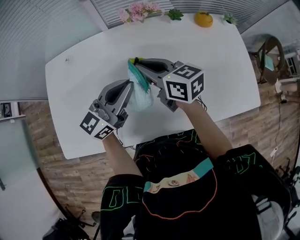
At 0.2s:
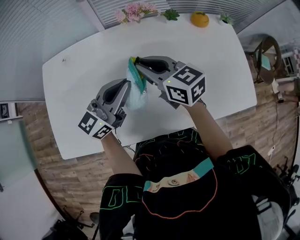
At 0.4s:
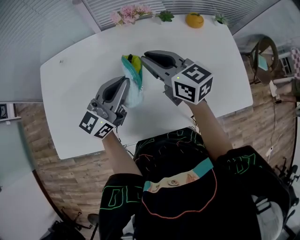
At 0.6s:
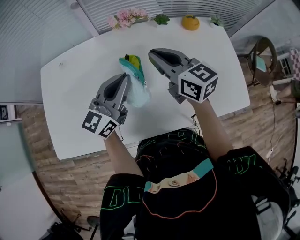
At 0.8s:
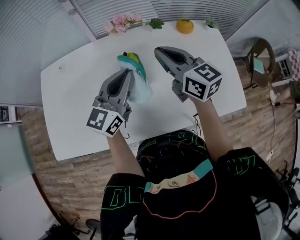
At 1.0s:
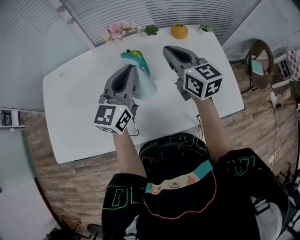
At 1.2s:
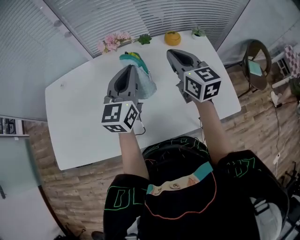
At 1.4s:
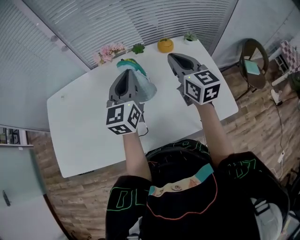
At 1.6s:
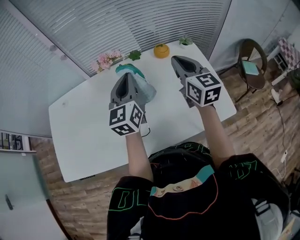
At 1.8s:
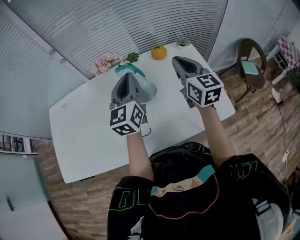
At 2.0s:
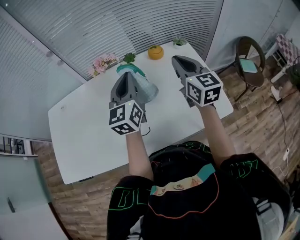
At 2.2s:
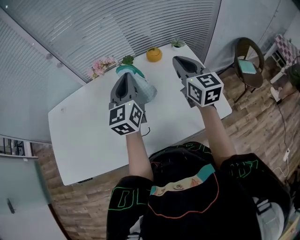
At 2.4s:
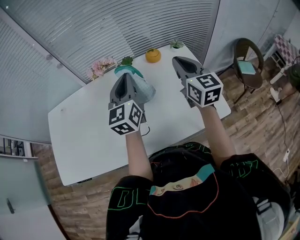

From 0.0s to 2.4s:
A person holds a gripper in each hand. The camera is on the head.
From 0.0s to 1.2s: The right gripper goes roughly 25 cm to the right, and rotates some 30 degrees; the left gripper travels to the right and upward by some 15 cm, and rotates about 30 degrees.
From 1.2s to 2.4s: The right gripper shifts about 15 cm to the right. The left gripper is displaced to the right by approximately 10 cm.

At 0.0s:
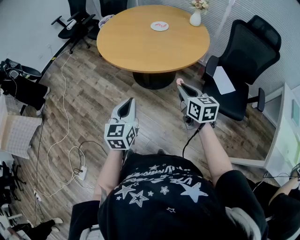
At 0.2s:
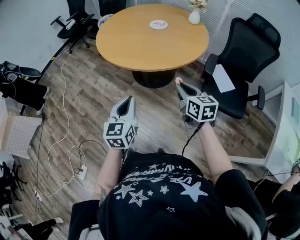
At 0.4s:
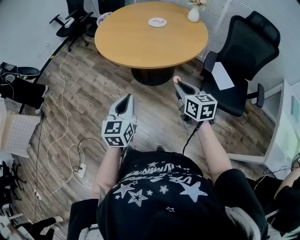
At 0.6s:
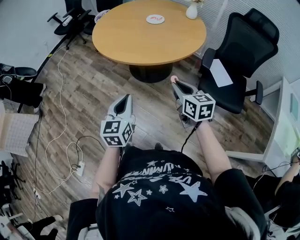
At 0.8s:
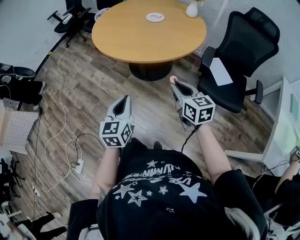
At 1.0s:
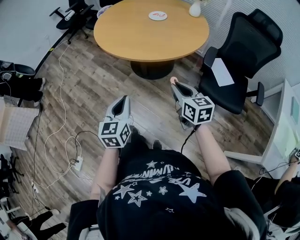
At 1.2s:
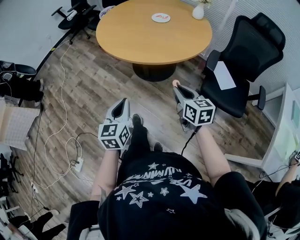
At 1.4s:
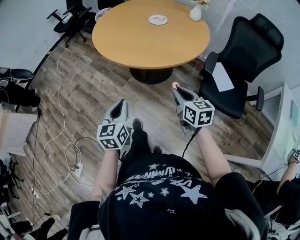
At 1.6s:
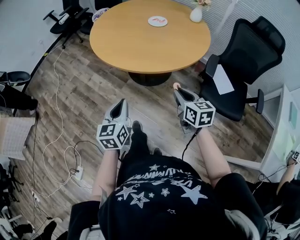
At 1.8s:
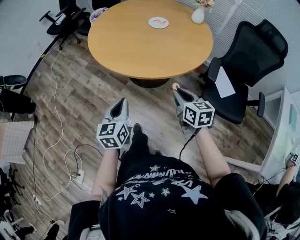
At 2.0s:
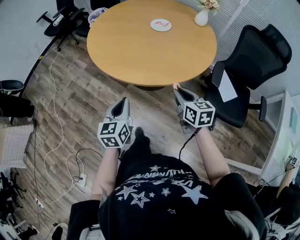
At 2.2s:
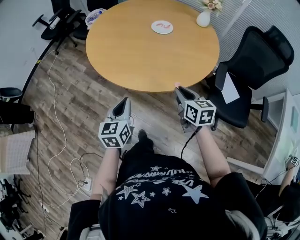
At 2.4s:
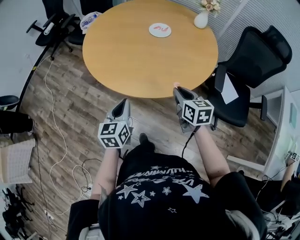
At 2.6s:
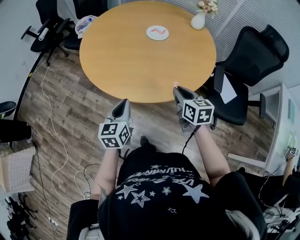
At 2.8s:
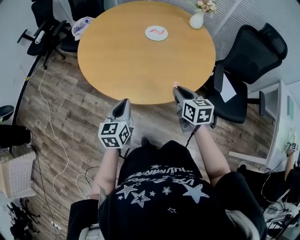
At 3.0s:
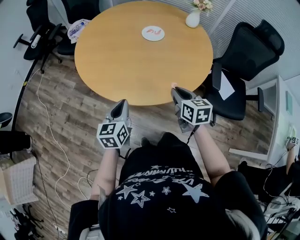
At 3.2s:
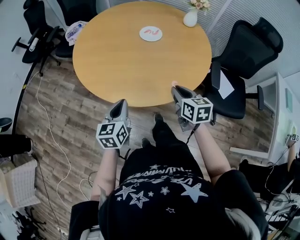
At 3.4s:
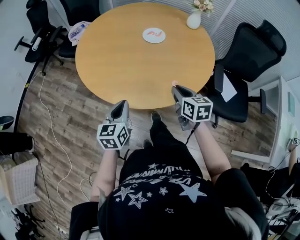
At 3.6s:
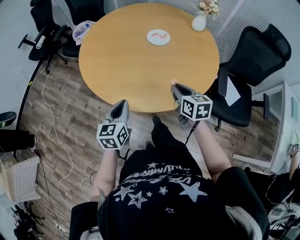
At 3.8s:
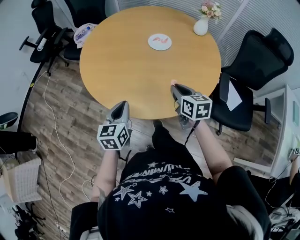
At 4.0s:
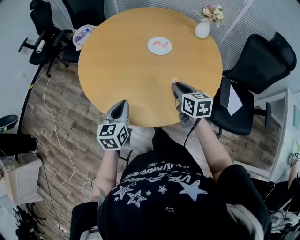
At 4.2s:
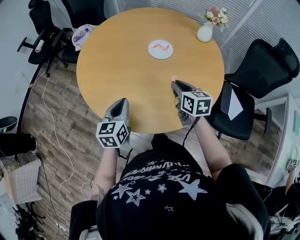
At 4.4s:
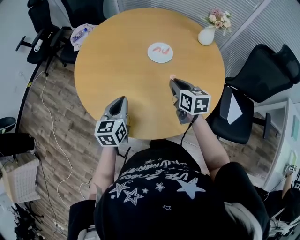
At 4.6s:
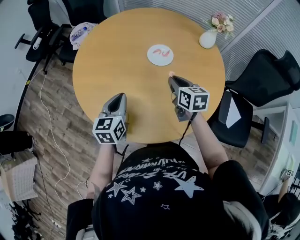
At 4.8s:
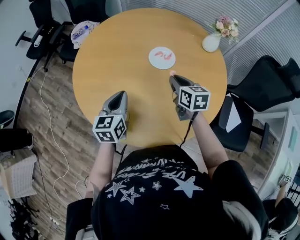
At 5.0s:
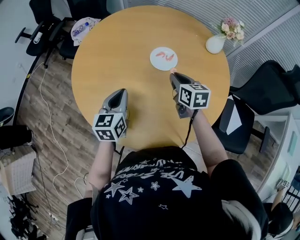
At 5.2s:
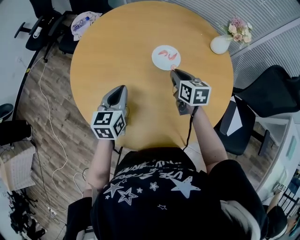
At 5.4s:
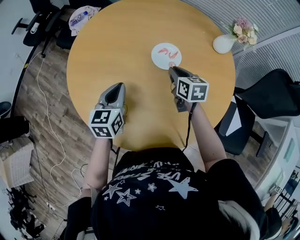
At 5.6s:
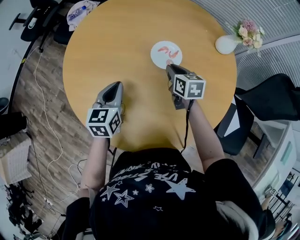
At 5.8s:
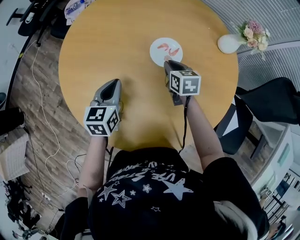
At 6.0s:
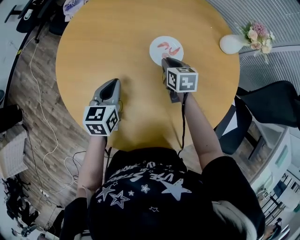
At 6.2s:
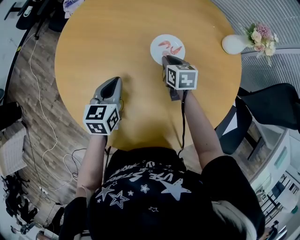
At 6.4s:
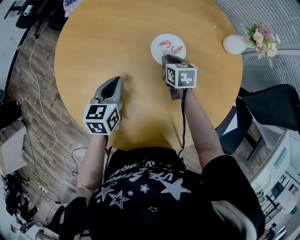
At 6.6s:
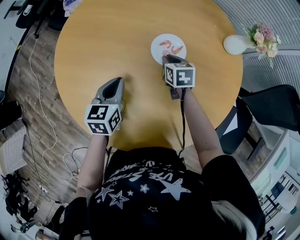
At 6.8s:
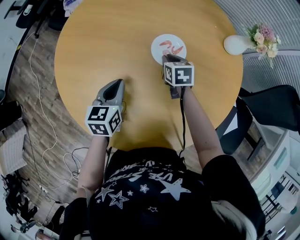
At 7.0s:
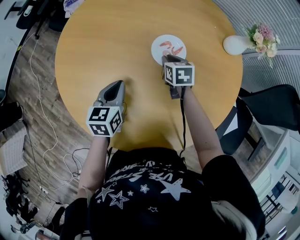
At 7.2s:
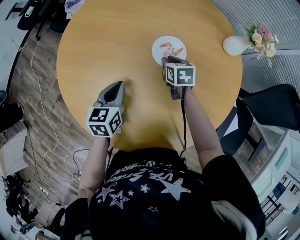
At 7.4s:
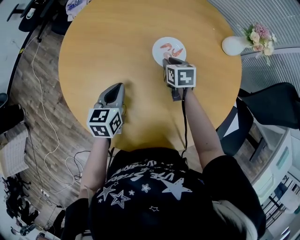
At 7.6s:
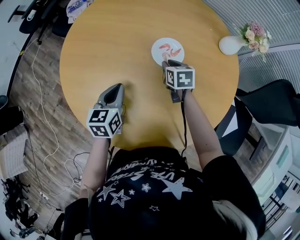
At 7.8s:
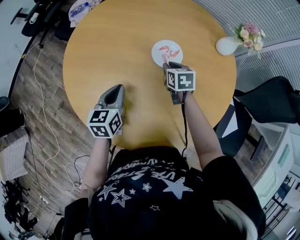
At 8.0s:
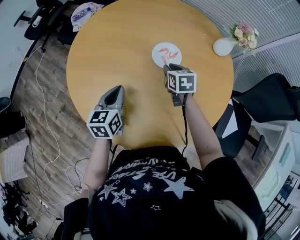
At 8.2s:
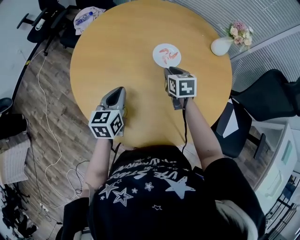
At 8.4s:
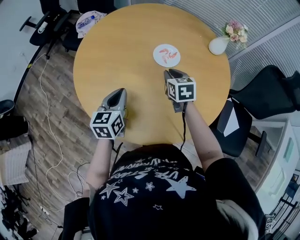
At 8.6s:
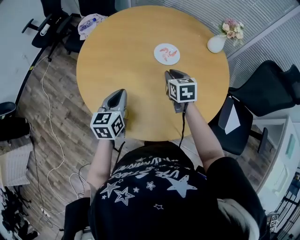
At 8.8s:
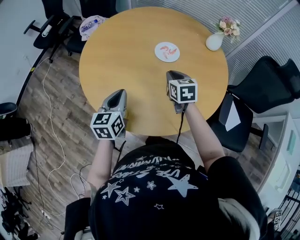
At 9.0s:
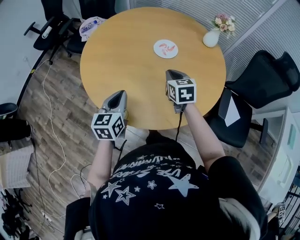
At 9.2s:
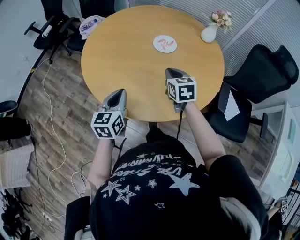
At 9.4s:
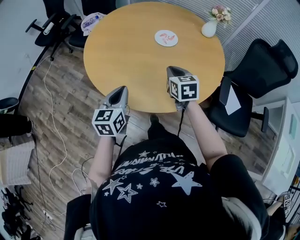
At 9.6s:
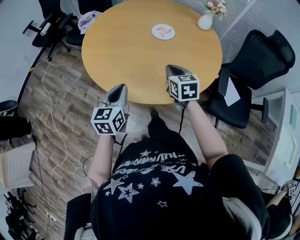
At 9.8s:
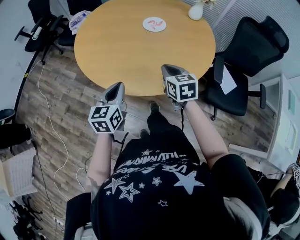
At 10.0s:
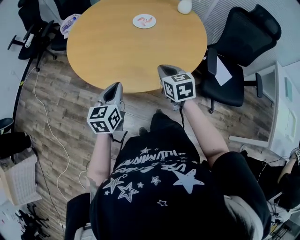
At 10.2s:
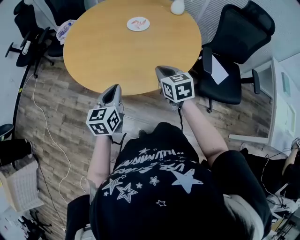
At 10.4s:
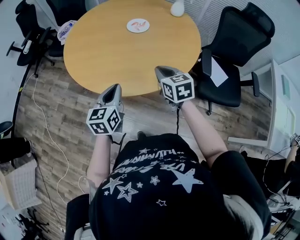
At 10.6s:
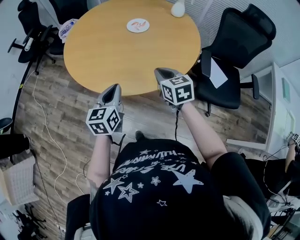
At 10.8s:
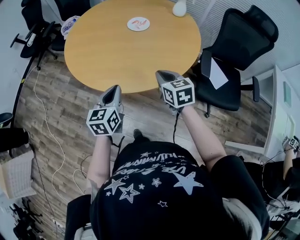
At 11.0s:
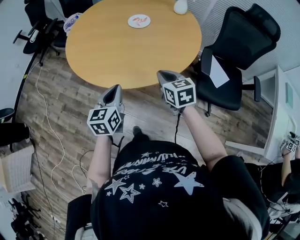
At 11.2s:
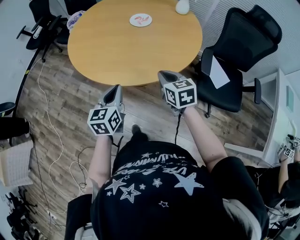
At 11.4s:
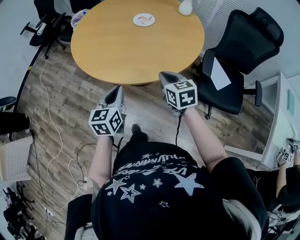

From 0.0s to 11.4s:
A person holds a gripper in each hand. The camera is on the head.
From 0.0s to 1.4s: The left gripper moves approximately 5 cm.
From 1.4s to 2.8s: Both grippers move forward, some 25 cm.
From 2.8s to 4.2s: The grippers both shift forward by roughly 15 cm.
From 4.2s to 5.6s: The left gripper heads forward, covering about 15 cm. Meanwhile the right gripper heads forward and downward, covering approximately 20 cm.
From 5.6s to 7.2s: The right gripper heads downward, covering about 5 cm.
From 7.2s to 8.6s: The left gripper is displaced backward and upward by about 10 cm; the right gripper is displaced upward and backward by approximately 15 cm.
From 8.6s to 10.0s: Both grippers move backward, some 20 cm.
From 10.0s to 11.4s: The grippers both shift to the right and backward by about 10 cm.

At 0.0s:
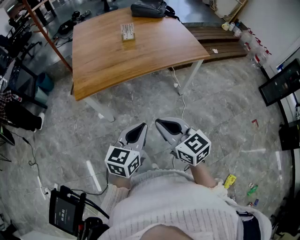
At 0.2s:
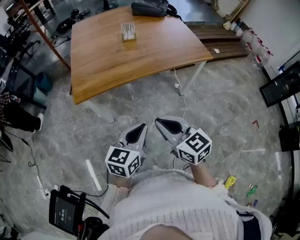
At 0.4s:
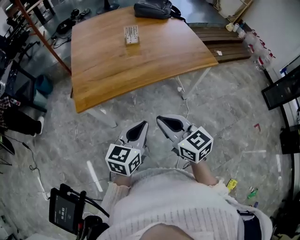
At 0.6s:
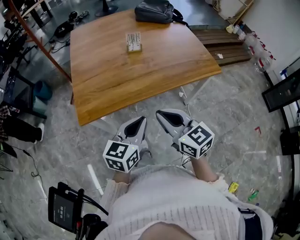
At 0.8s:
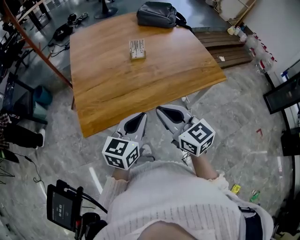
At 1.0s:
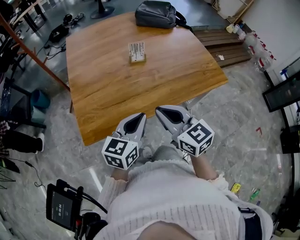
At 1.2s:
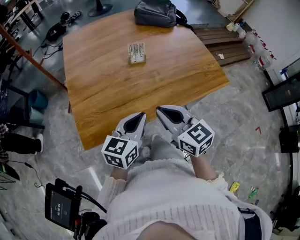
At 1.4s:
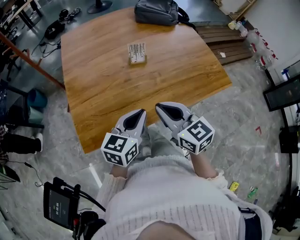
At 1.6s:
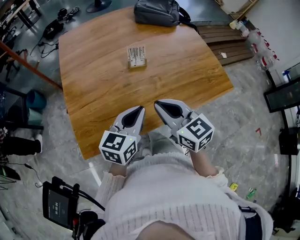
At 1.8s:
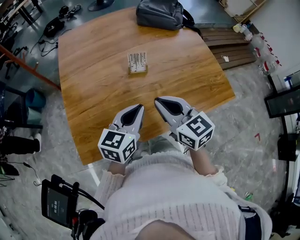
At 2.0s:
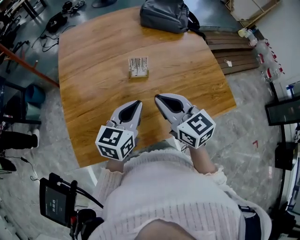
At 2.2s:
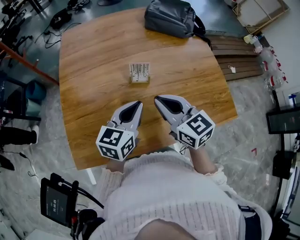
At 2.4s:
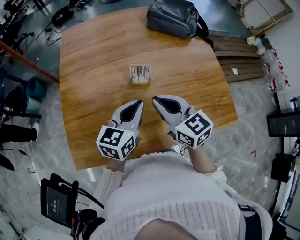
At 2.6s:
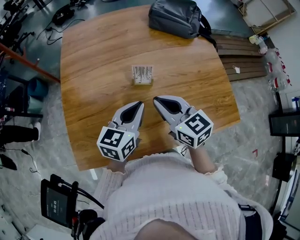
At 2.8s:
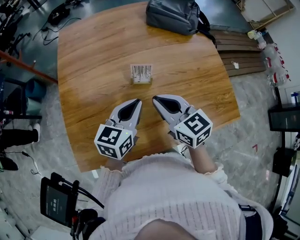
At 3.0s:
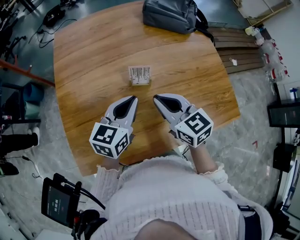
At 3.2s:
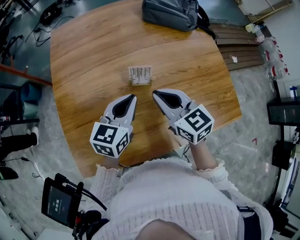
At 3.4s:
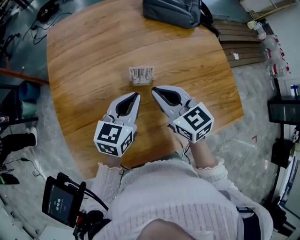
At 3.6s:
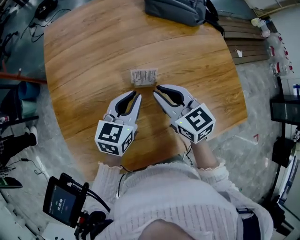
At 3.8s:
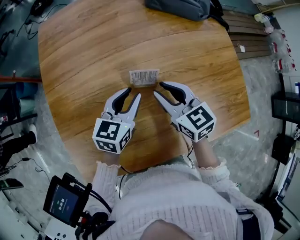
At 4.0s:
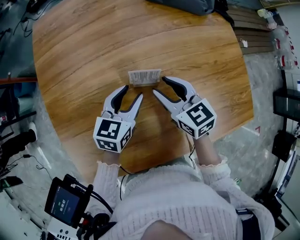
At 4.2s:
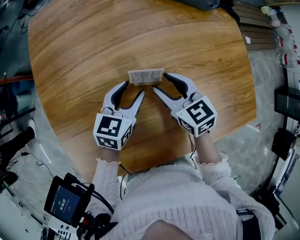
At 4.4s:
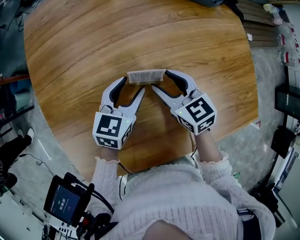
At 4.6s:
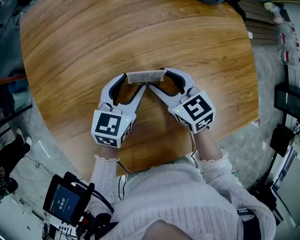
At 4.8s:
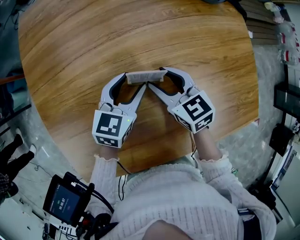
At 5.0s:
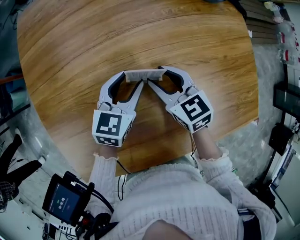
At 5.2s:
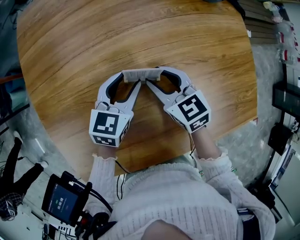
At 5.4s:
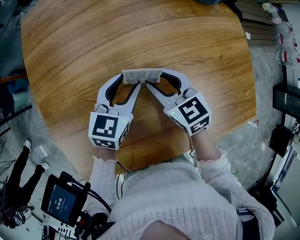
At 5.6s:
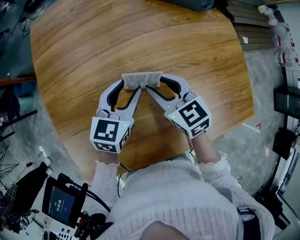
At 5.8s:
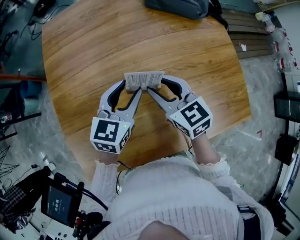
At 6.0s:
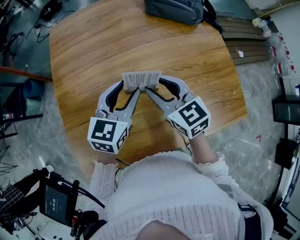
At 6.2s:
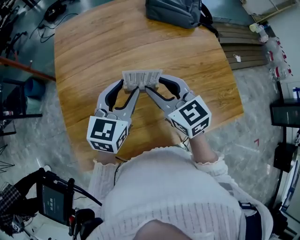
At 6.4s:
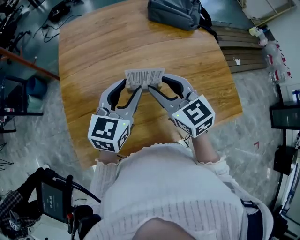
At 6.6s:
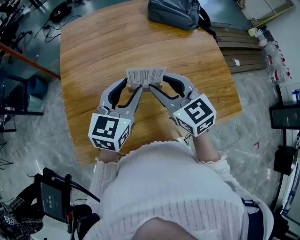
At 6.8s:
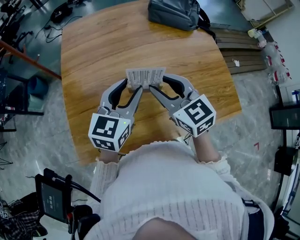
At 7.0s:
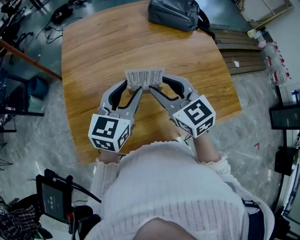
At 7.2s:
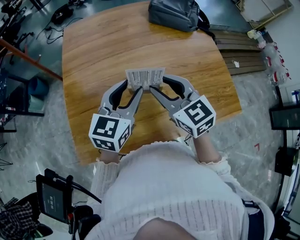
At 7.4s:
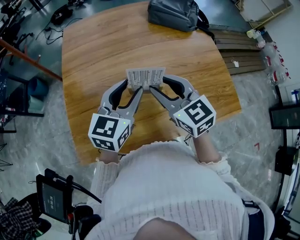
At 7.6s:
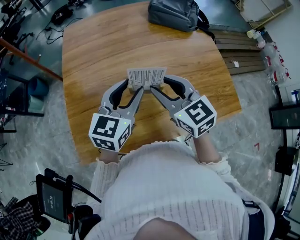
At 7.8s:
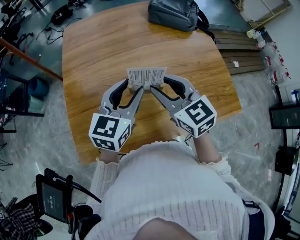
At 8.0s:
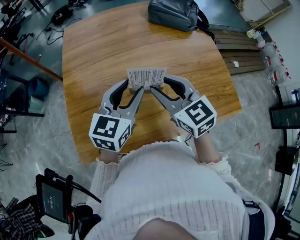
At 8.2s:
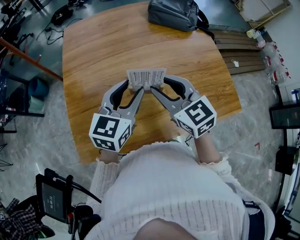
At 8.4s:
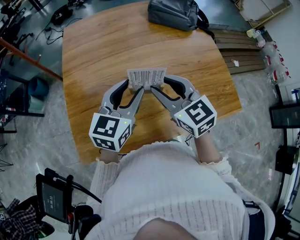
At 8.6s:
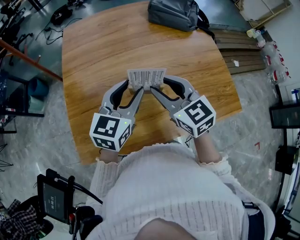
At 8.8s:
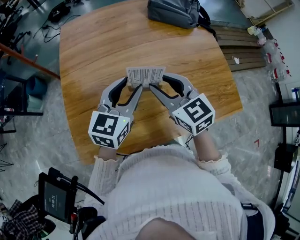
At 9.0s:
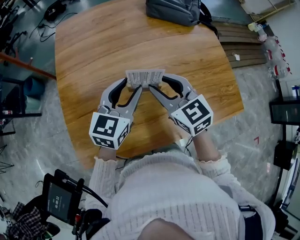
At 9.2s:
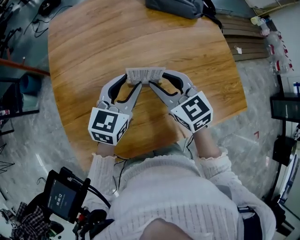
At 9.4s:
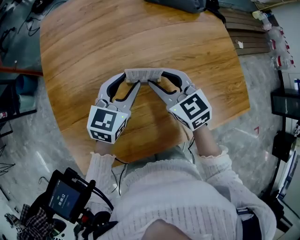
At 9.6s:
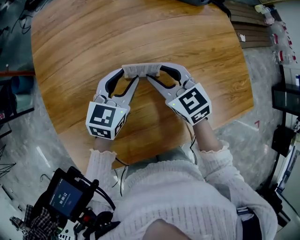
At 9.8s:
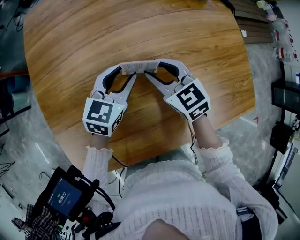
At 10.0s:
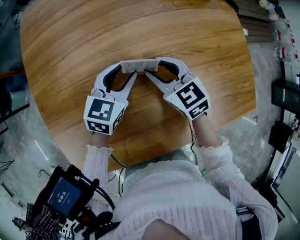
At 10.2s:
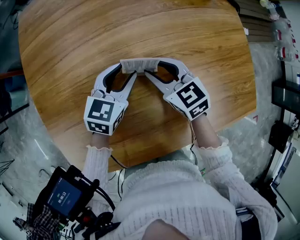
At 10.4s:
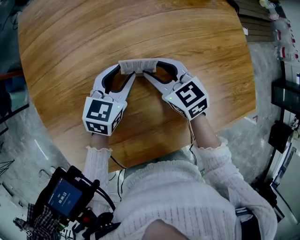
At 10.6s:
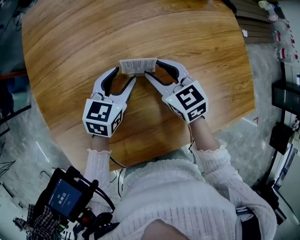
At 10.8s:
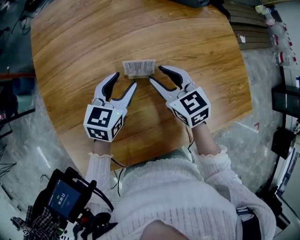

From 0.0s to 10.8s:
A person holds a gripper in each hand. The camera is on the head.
From 0.0s to 1.6s: Both grippers are carried forward, about 40 cm.
From 1.6s to 3.0s: Both grippers travel together forward, some 20 cm.
From 3.0s to 4.6s: The two grippers go roughly 20 cm downward and forward. The right gripper opens its fingers; the left gripper opens.
From 4.6s to 6.2s: Both grippers move upward and backward, about 20 cm.
From 6.2s to 7.8s: The grippers both shift backward by about 5 cm.
From 7.8s to 9.2s: The right gripper moves downward and forward, approximately 10 cm, while the left gripper travels forward and downward by approximately 10 cm.
From 9.2s to 10.8s: The two grippers go some 10 cm downward and forward.
